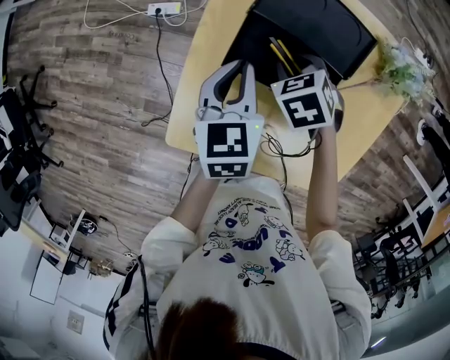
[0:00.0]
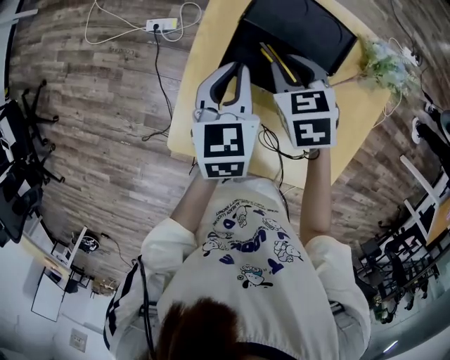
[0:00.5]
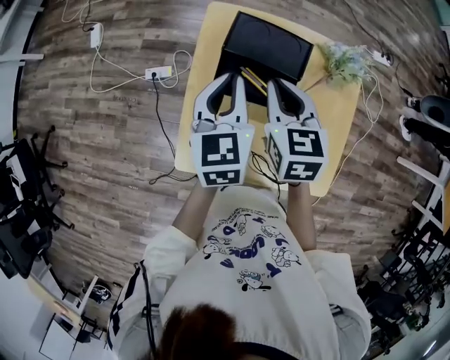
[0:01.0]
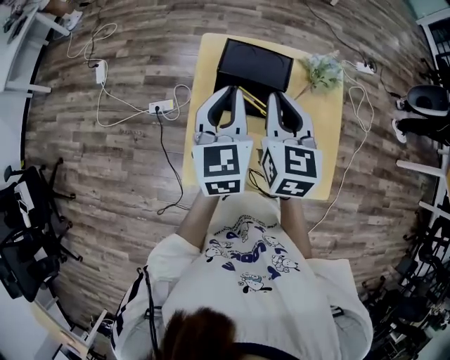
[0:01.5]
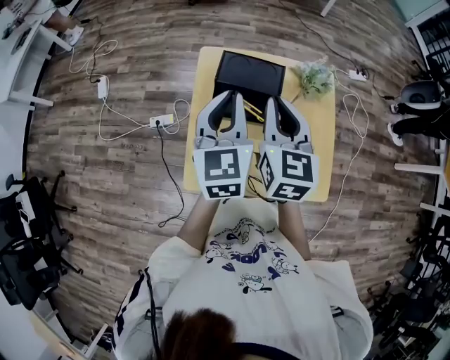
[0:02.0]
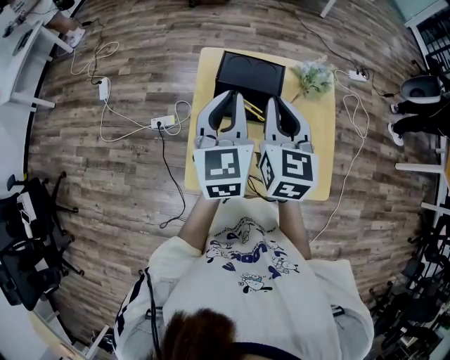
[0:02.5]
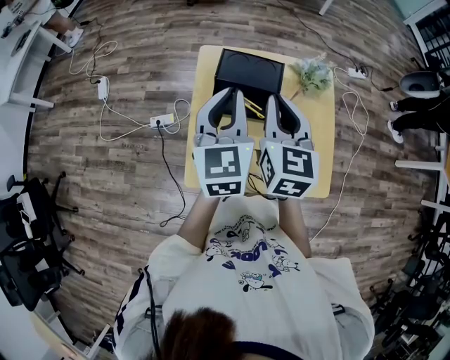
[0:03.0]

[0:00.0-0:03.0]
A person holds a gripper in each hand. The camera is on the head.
0:00.0 to 0:01.5: Both grippers travel together upward, roughly 25 cm. The left gripper swivels some 30 degrees, while the right gripper angles its fingers upward, by about 50 degrees, and closes its fingers.
0:01.5 to 0:03.0: The left gripper shifts by about 5 cm.

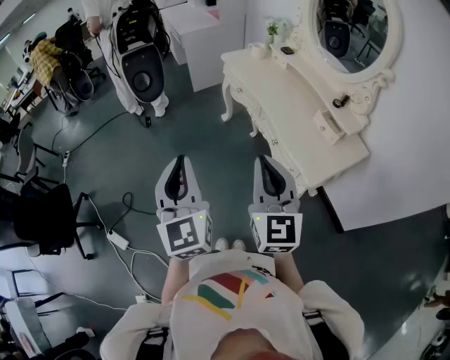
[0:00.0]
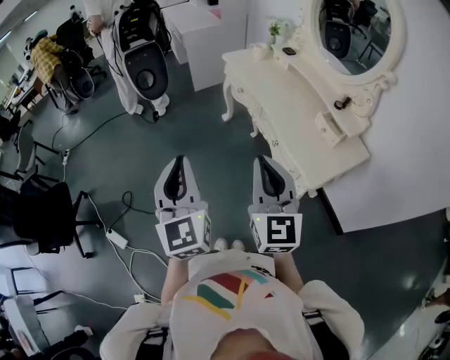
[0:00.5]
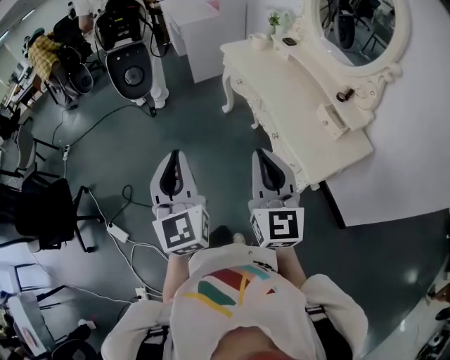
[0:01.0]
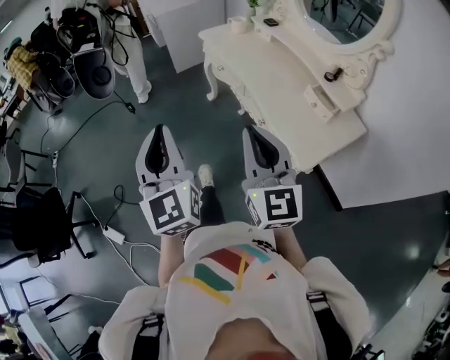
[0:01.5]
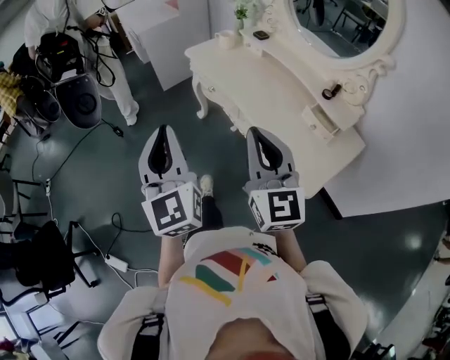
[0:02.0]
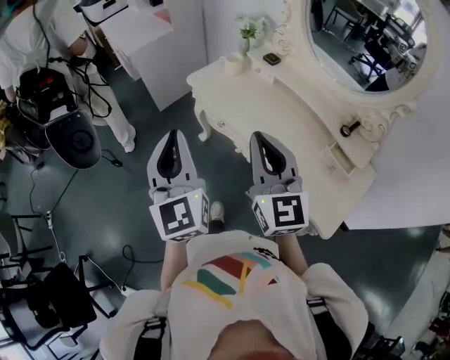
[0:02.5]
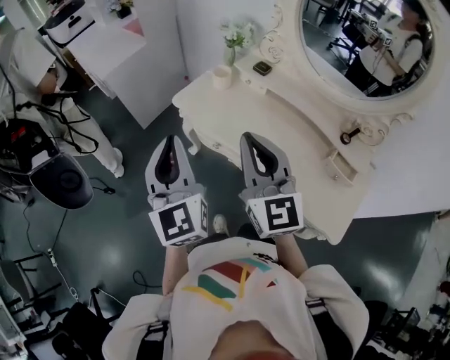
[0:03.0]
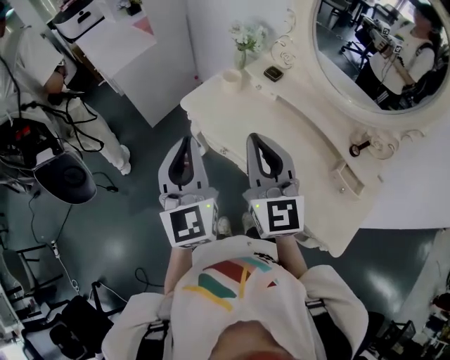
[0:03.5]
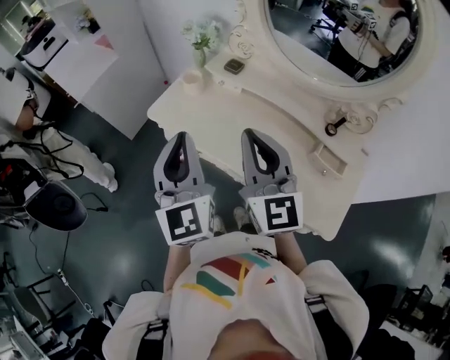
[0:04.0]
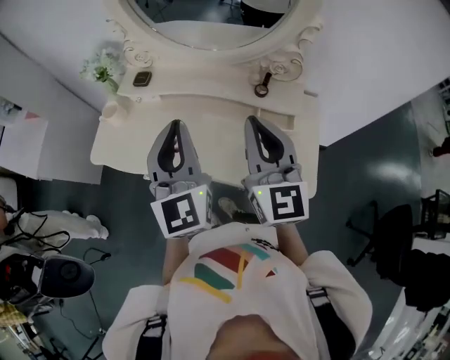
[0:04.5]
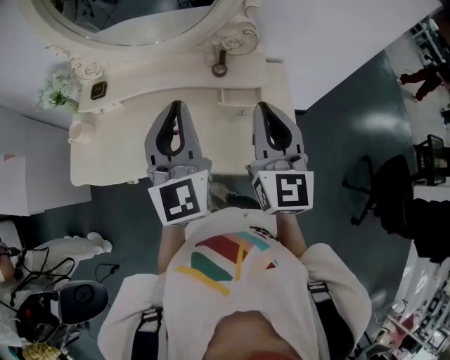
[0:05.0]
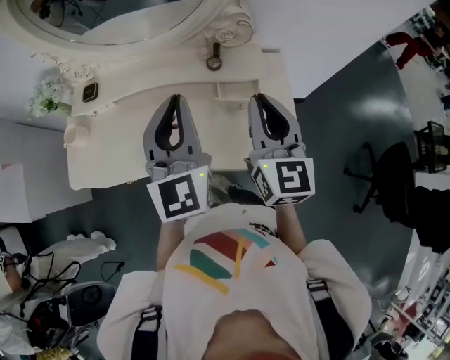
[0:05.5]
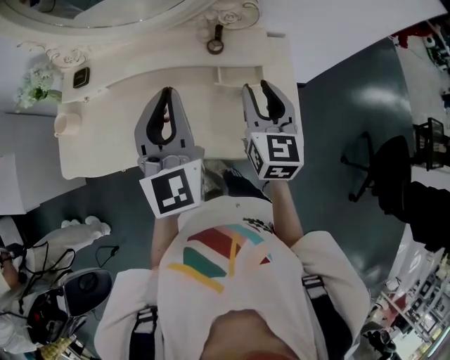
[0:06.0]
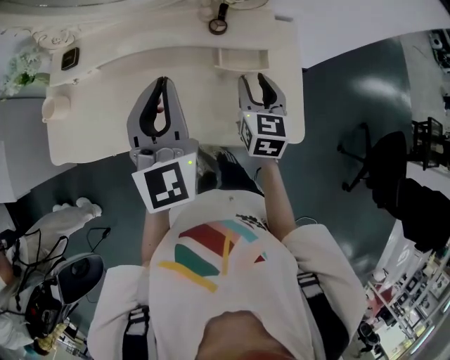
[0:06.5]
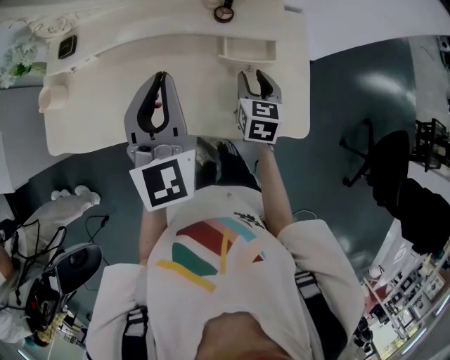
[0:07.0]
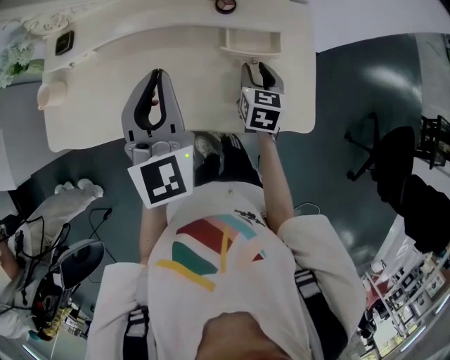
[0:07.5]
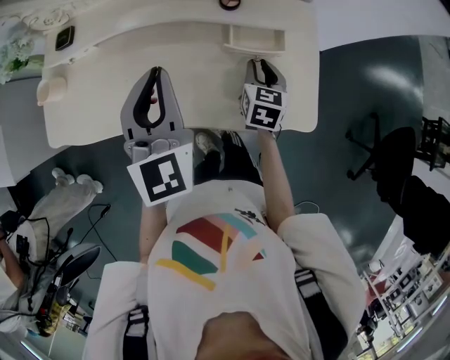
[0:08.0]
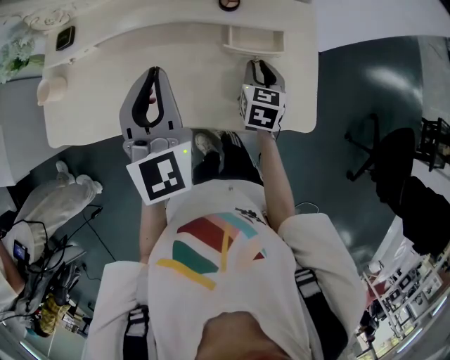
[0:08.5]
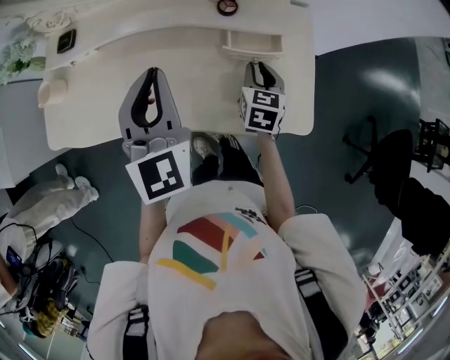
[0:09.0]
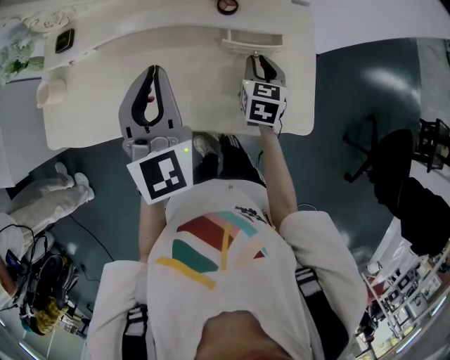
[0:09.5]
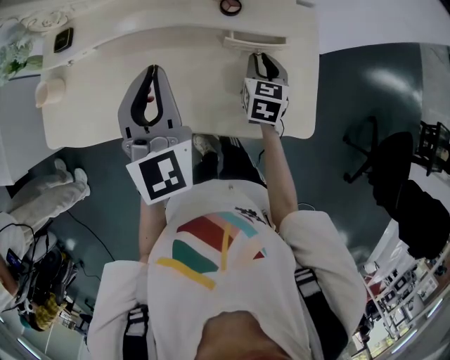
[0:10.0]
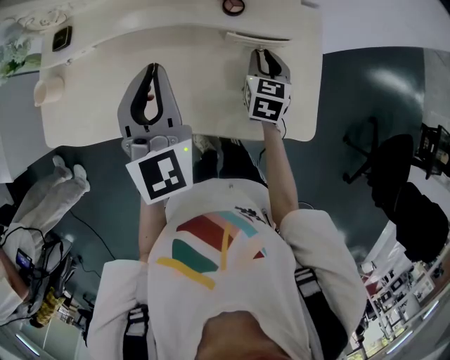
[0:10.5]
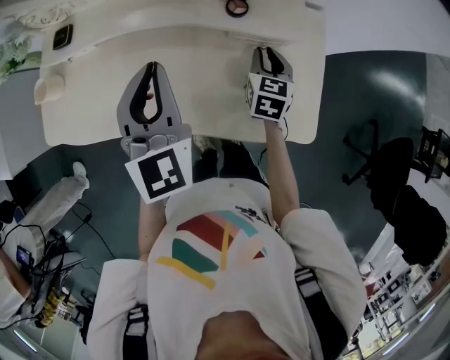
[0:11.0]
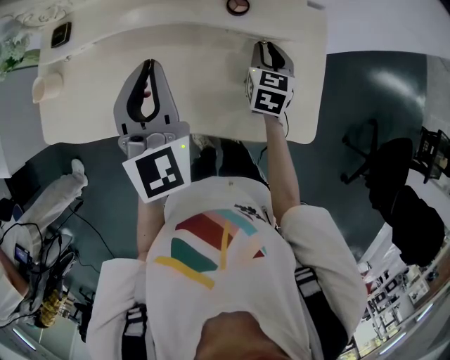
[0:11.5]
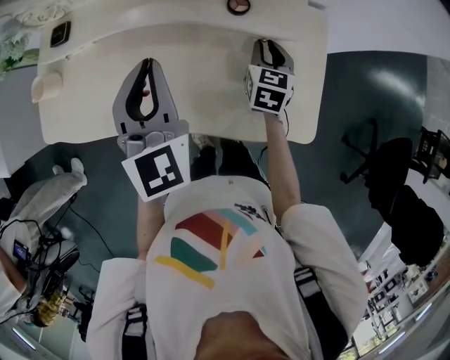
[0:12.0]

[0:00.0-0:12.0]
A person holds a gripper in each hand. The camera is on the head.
0:00.0 to 0:02.0: The left gripper heads forward, covering approximately 20 cm. The right gripper travels forward and to the right by some 20 cm.
0:02.0 to 0:04.0: The grippers both shift forward by some 35 cm. The left gripper turns by approximately 30 degrees.
0:04.0 to 0:06.0: The right gripper moves approximately 35 cm, rotates approximately 50 degrees, and opens its fingers, while the left gripper moves some 30 cm, and turns by approximately 40 degrees.
0:06.0 to 0:08.0: The right gripper heads downward, covering about 20 cm, and turns by roughly 20 degrees, while the left gripper is displaced downward by about 10 cm.
0:08.0 to 0:10.0: There are only small adjustments of the grippers.
0:10.0 to 0:12.0: The grippers move only a little.

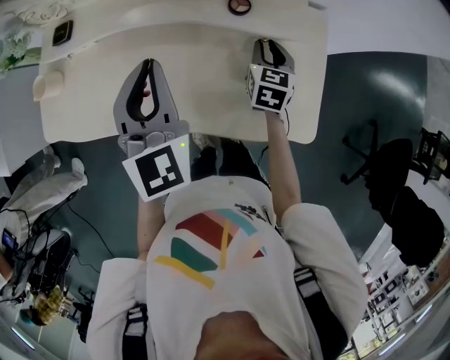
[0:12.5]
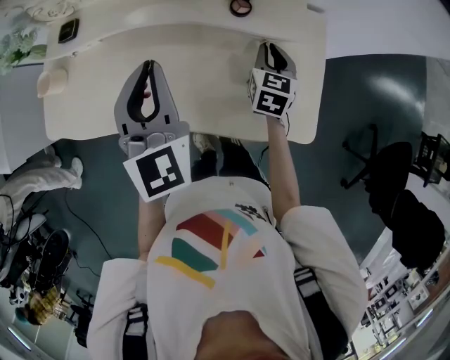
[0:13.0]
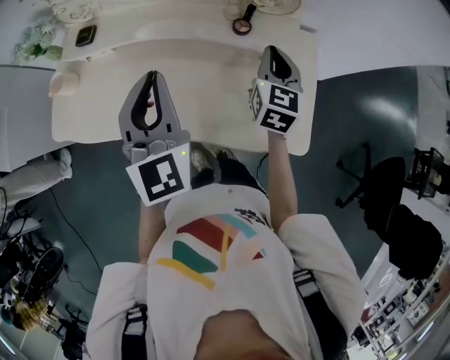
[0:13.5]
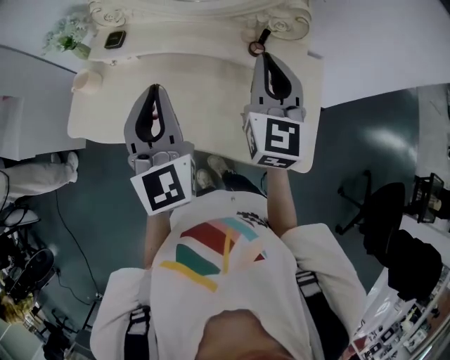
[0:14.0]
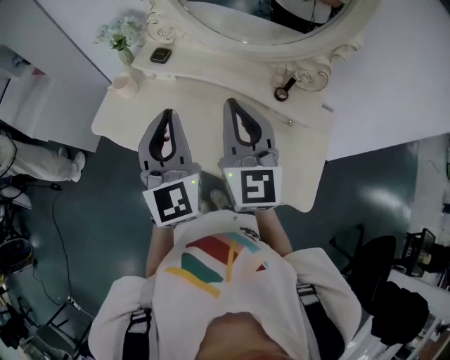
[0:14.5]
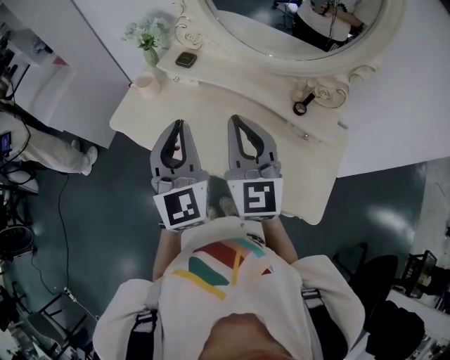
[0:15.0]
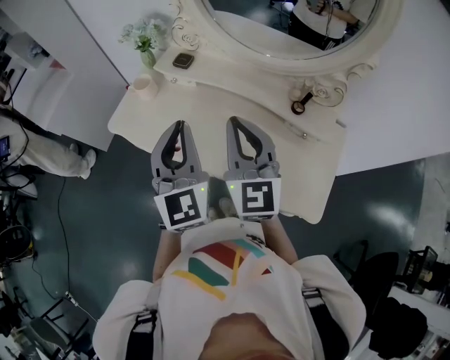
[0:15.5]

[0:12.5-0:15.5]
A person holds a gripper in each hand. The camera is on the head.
0:12.5 to 0:14.0: The left gripper moves upward, backward and to the left, about 15 cm, while the right gripper goes roughly 30 cm upward, and tilts its fingers about 30 degrees upward.
0:14.0 to 0:15.5: The left gripper goes approximately 10 cm to the left, while the right gripper travels to the left by about 20 cm, and rotates some 30 degrees.

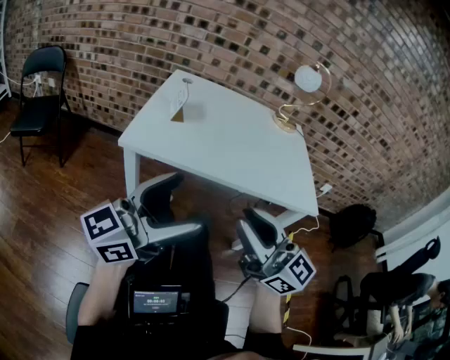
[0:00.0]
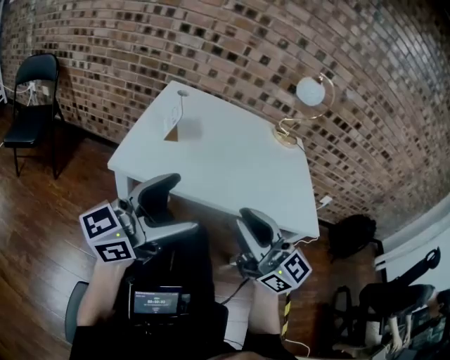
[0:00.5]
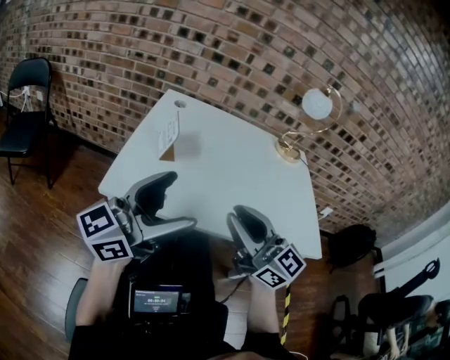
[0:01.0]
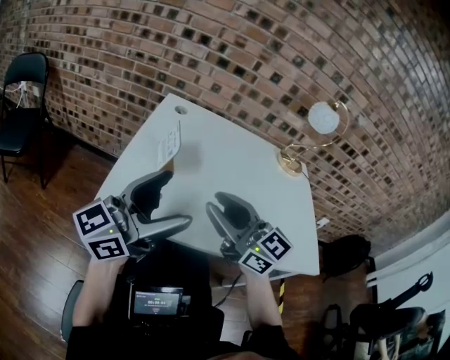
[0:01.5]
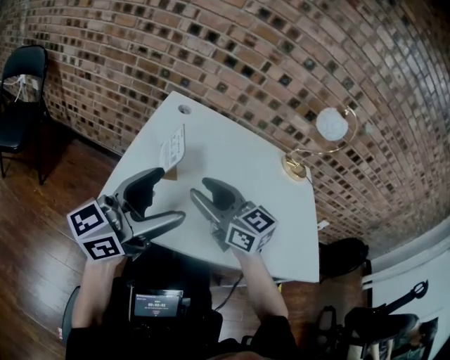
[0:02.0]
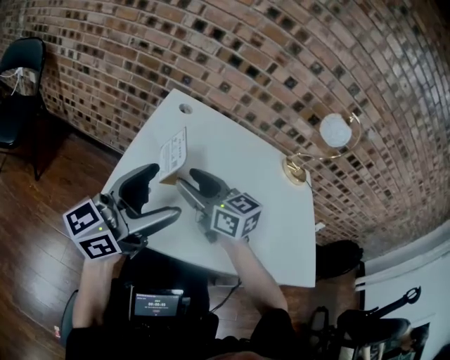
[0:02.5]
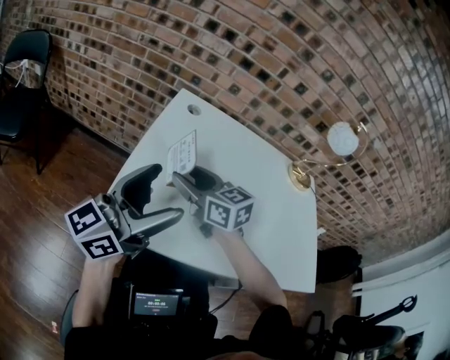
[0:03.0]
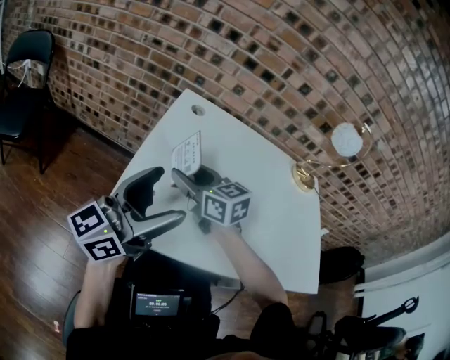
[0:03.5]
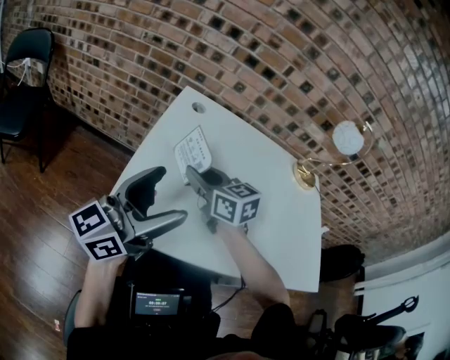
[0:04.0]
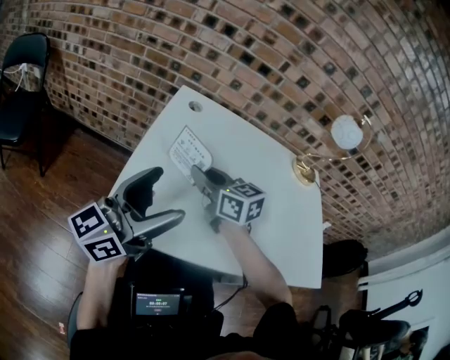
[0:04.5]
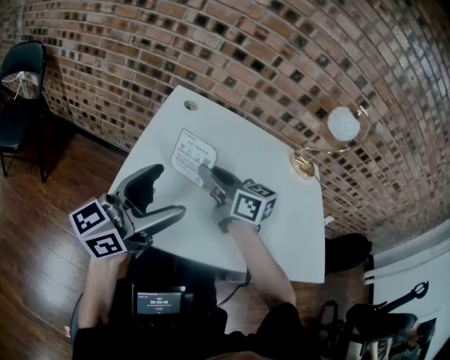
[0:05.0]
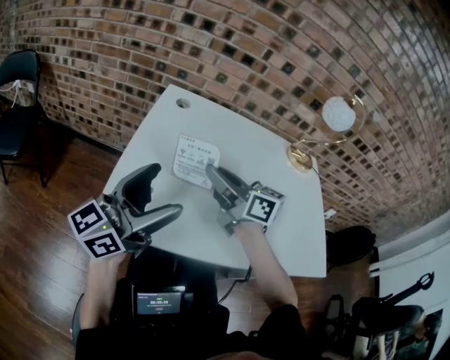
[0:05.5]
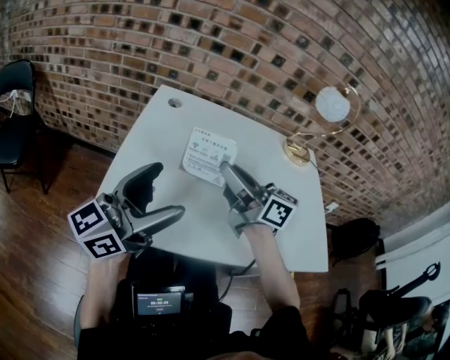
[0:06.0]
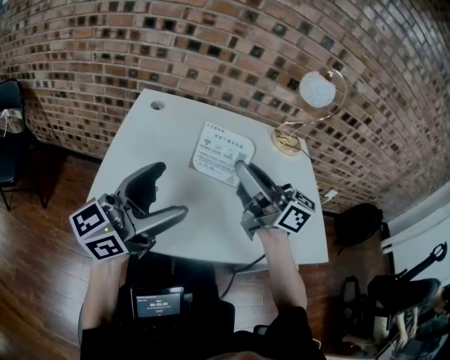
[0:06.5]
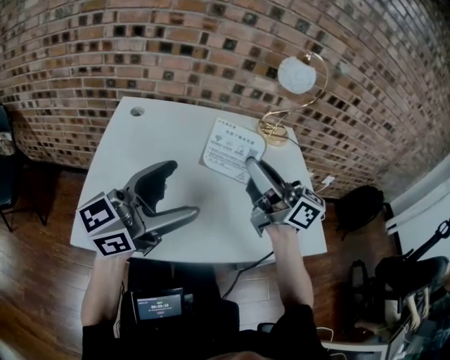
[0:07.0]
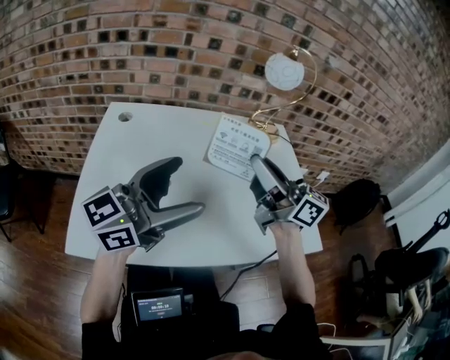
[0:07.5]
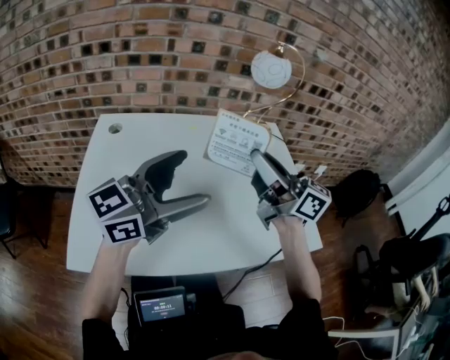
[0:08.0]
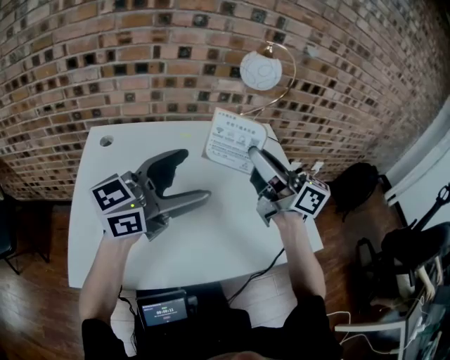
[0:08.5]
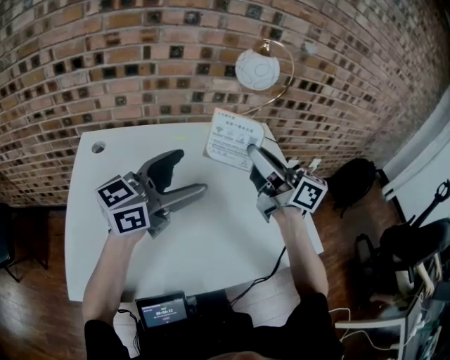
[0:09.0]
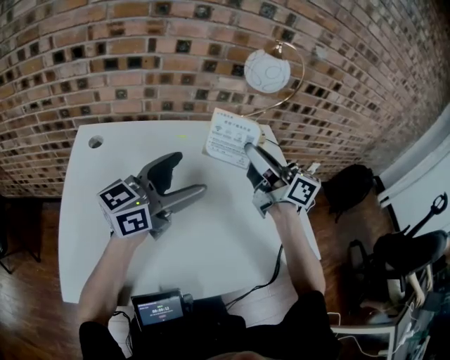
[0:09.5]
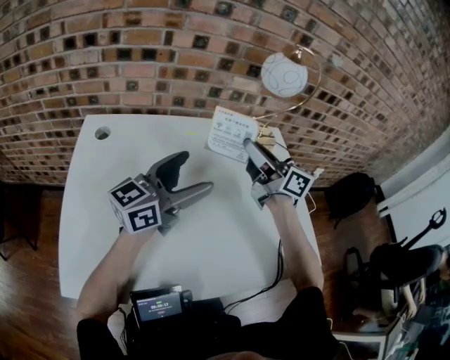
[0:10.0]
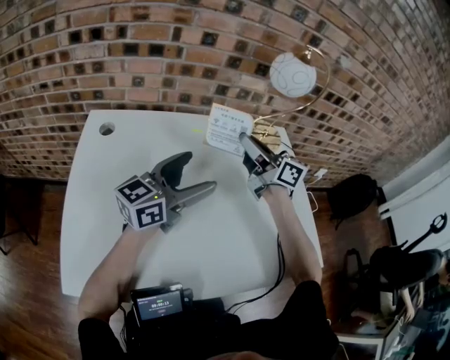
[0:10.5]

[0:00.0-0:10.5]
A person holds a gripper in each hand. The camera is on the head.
0:00.0 to 0:02.0: Both grippers travel together forward, roughly 30 cm. The right gripper rotates approximately 20 degrees, and opens its fingers.
0:02.0 to 0:04.0: The right gripper travels forward and downward by roughly 10 cm, and closes; the left gripper moves about 5 cm.
0:04.0 to 0:06.5: The right gripper is displaced to the right, upward and backward by about 25 cm, and angles its fingers upward, by approximately 40 degrees. Meanwhile the left gripper shifts some 10 cm to the right.
0:06.5 to 0:08.5: Both grippers move to the right and forward, approximately 20 cm. The left gripper changes its angle by roughly 20 degrees.
0:08.5 to 0:10.5: Both grippers move forward and downward, approximately 15 cm.
